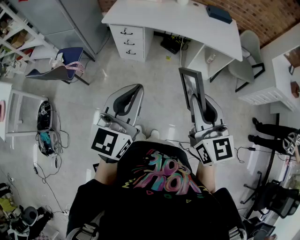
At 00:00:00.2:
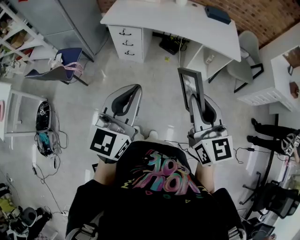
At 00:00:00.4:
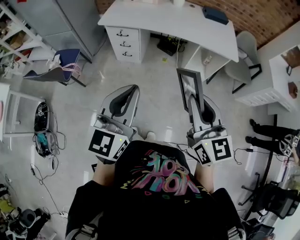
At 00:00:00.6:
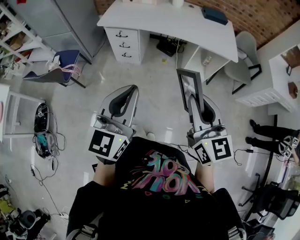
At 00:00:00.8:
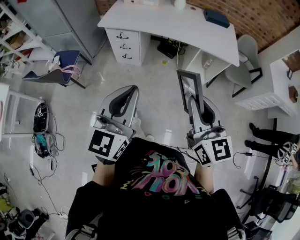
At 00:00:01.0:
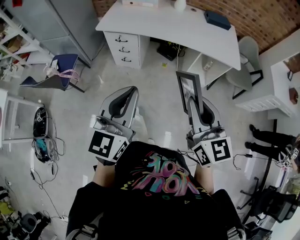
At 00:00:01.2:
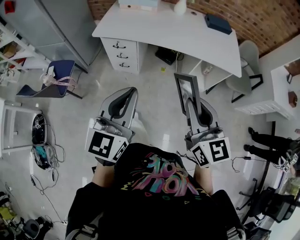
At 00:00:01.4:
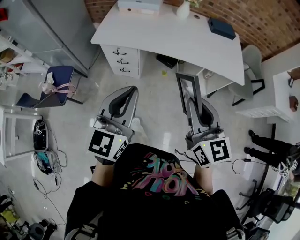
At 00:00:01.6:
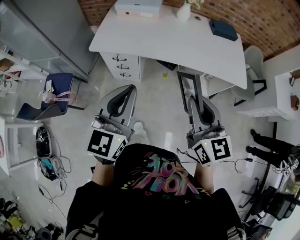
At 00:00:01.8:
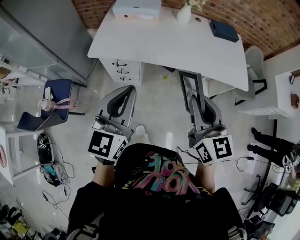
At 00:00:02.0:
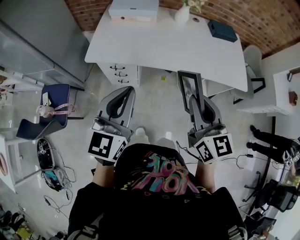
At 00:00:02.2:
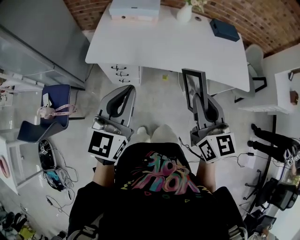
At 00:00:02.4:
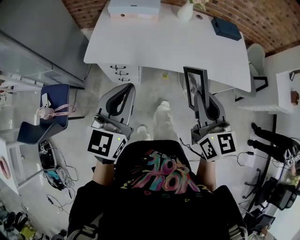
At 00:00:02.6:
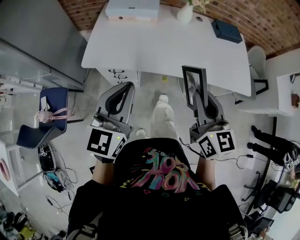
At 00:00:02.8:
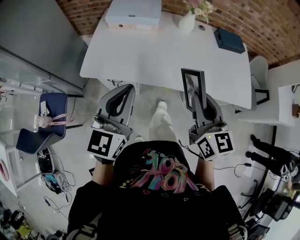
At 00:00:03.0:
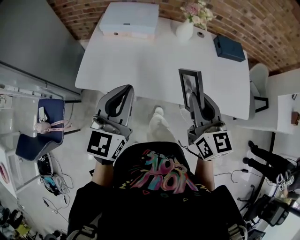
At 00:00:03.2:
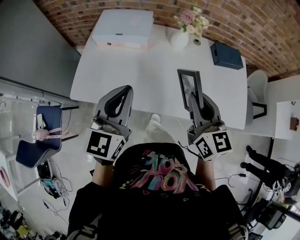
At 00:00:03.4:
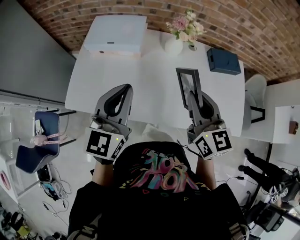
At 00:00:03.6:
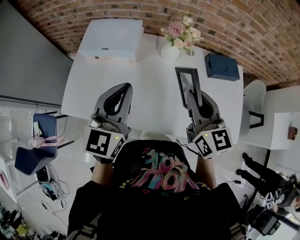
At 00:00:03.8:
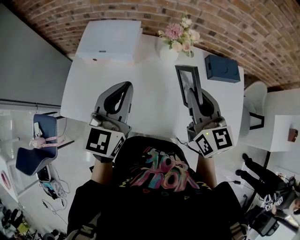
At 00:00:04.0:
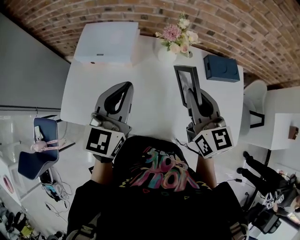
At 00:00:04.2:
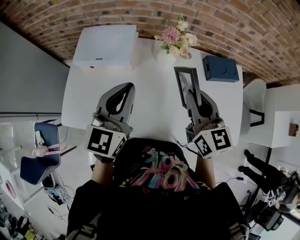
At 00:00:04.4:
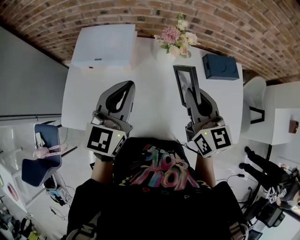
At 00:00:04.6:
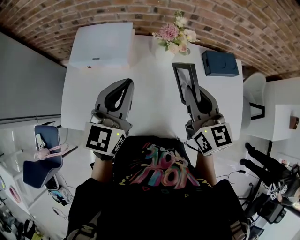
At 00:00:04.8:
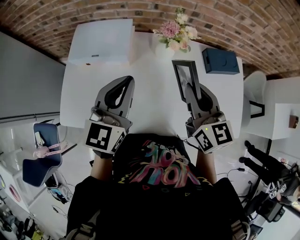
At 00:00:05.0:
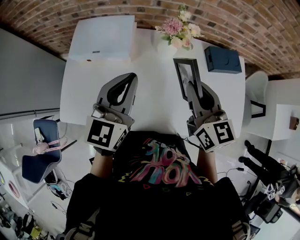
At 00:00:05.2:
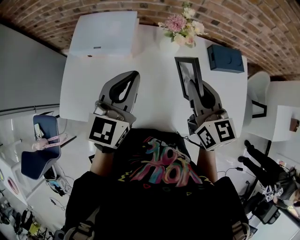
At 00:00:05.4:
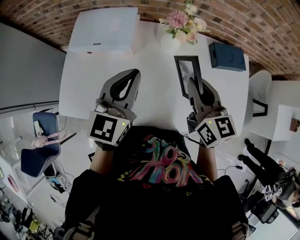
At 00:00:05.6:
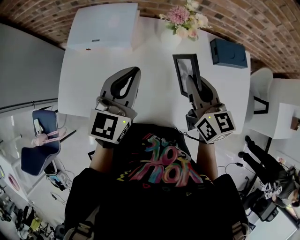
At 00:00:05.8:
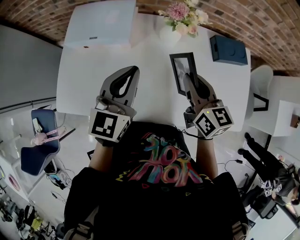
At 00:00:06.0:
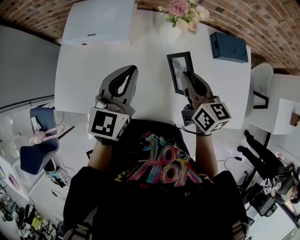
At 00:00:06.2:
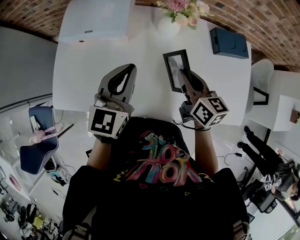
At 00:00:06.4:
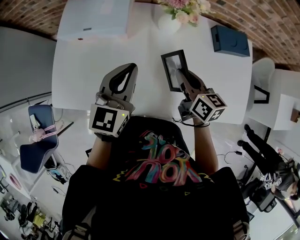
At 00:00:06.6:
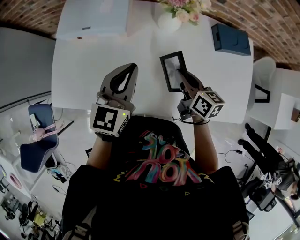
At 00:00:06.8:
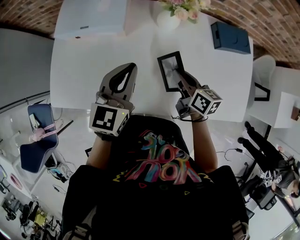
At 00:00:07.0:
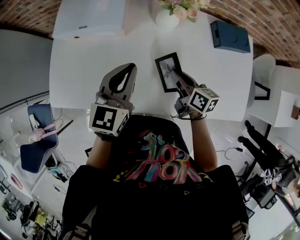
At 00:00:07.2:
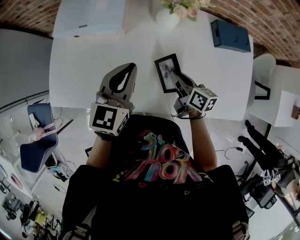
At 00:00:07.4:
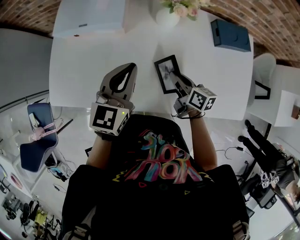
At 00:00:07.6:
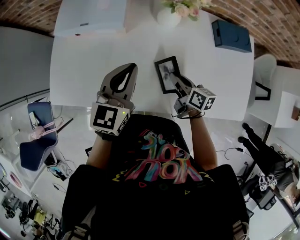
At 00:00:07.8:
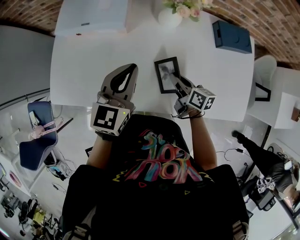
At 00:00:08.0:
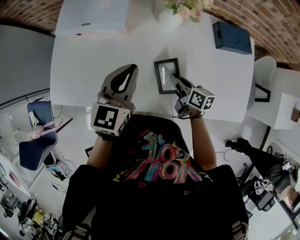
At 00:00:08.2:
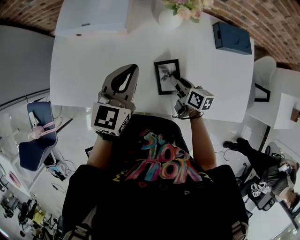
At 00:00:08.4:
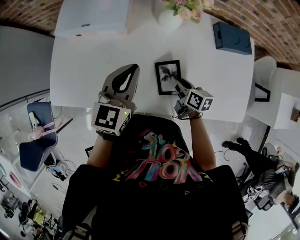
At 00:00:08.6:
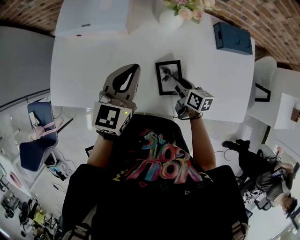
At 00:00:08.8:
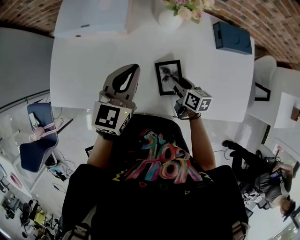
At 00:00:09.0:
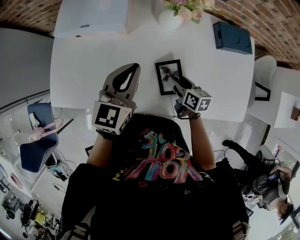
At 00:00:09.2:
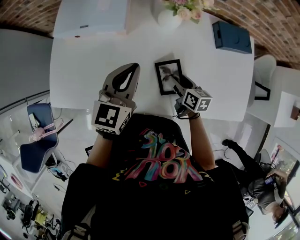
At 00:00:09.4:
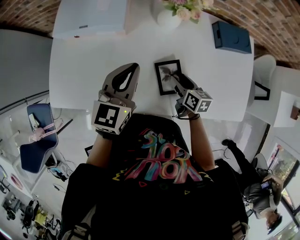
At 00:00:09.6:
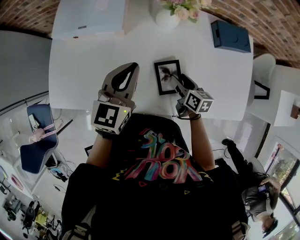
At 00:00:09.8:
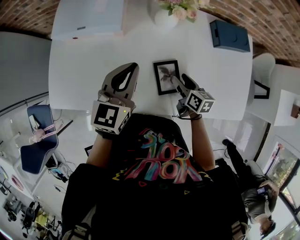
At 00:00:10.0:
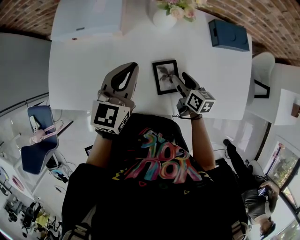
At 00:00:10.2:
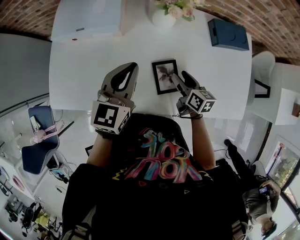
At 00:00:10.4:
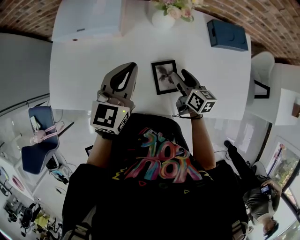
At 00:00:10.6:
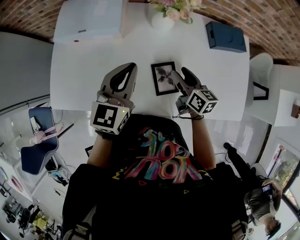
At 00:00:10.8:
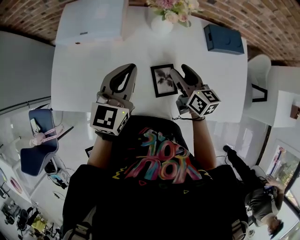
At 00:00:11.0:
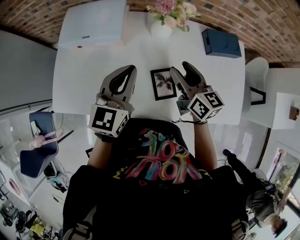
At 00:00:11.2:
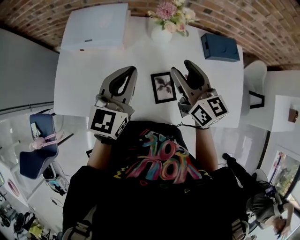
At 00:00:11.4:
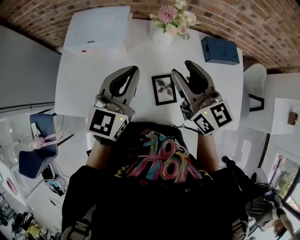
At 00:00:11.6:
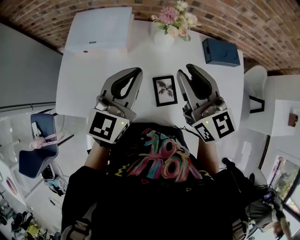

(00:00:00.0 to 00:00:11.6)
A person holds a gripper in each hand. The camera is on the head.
00:00:00.0 - 00:00:01.4: The grippers both shift forward by roughly 25 cm.
00:00:01.4 - 00:00:02.8: Both grippers travel together forward, about 30 cm.
00:00:02.8 - 00:00:04.4: The left gripper heads forward and to the right, covering roughly 40 cm. Meanwhile the right gripper moves forward, about 35 cm.
00:00:04.4 - 00:00:05.8: Both grippers move downward, some 10 cm.
00:00:05.8 - 00:00:07.2: The right gripper heads downward, covering some 15 cm, and rotates roughly 30 degrees. Meanwhile the left gripper shifts some 5 cm downward.
00:00:07.2 - 00:00:08.8: The right gripper shifts some 5 cm downward, and opens up.
00:00:08.8 - 00:00:10.2: The grippers make only small movements.
00:00:10.2 - 00:00:11.6: The left gripper is displaced upward by approximately 10 cm. Meanwhile the right gripper moves upward, approximately 30 cm, rotates approximately 50 degrees, and closes its fingers.

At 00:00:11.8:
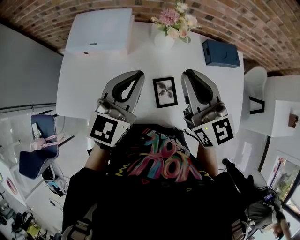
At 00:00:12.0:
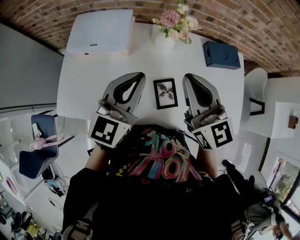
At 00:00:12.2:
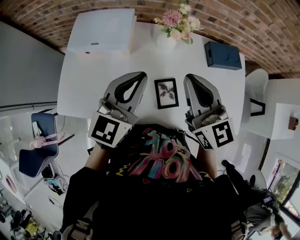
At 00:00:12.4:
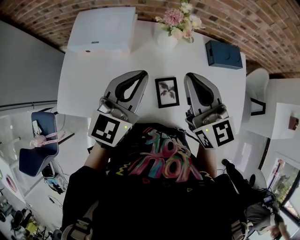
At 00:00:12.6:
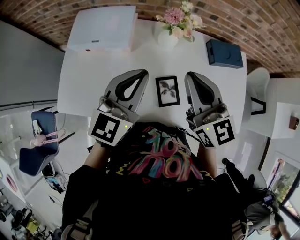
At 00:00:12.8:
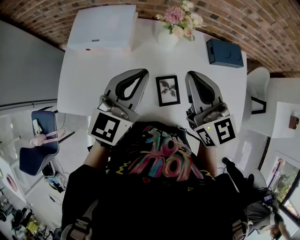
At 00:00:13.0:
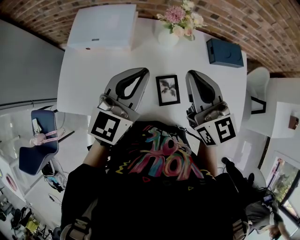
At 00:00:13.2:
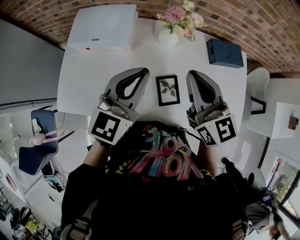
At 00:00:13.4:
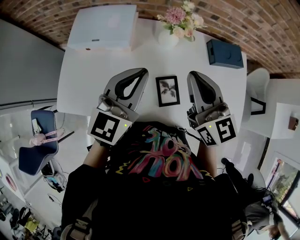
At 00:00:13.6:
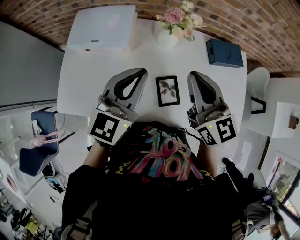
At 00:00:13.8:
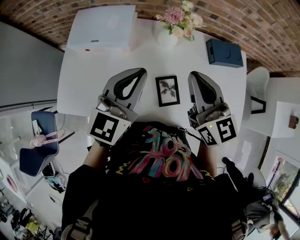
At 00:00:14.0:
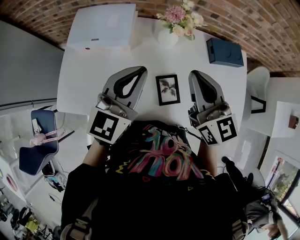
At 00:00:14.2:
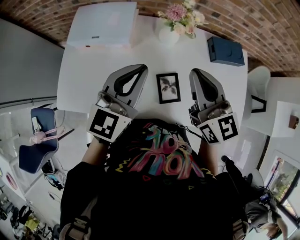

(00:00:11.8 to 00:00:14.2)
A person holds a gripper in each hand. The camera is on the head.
00:00:11.8 - 00:00:13.0: The grippers make only small movements.
00:00:13.0 - 00:00:14.2: Both grippers stay about where they are.

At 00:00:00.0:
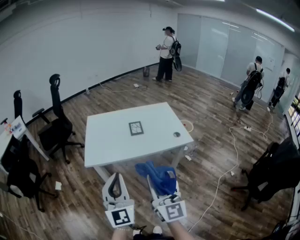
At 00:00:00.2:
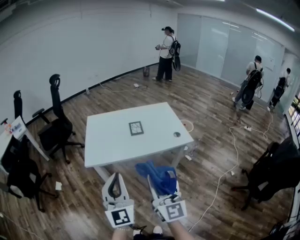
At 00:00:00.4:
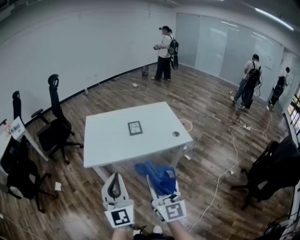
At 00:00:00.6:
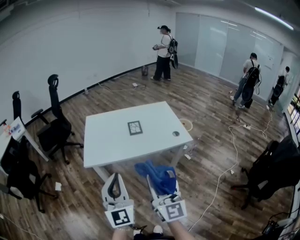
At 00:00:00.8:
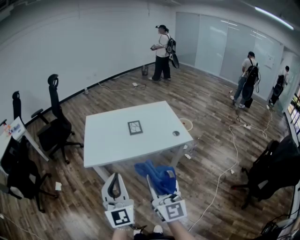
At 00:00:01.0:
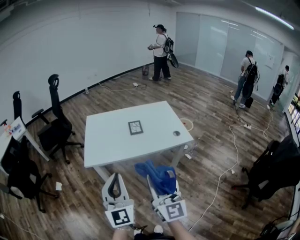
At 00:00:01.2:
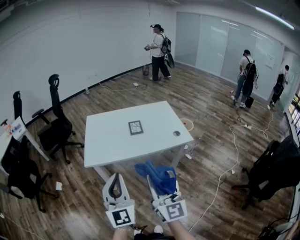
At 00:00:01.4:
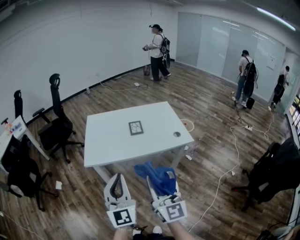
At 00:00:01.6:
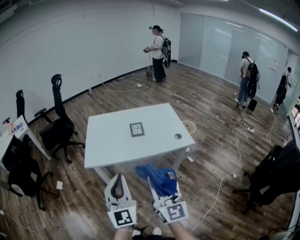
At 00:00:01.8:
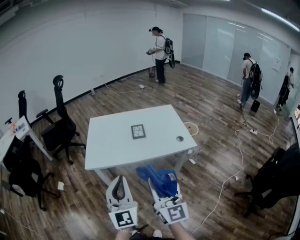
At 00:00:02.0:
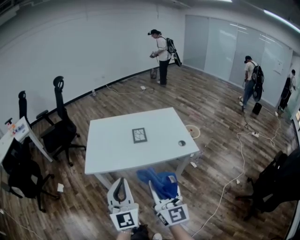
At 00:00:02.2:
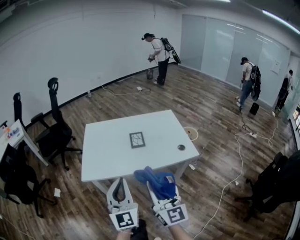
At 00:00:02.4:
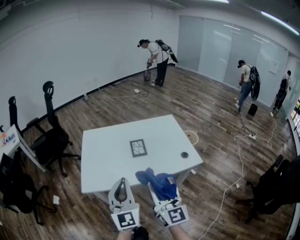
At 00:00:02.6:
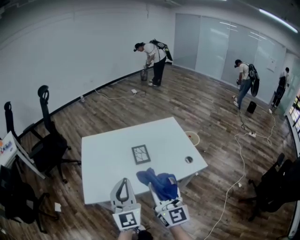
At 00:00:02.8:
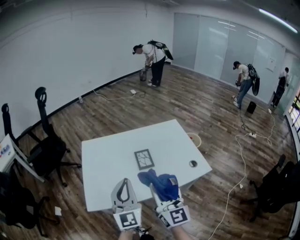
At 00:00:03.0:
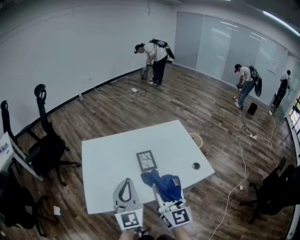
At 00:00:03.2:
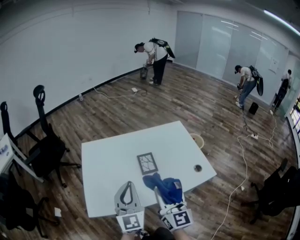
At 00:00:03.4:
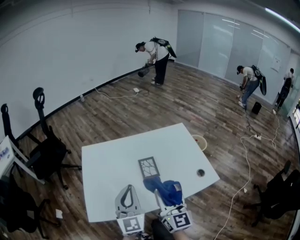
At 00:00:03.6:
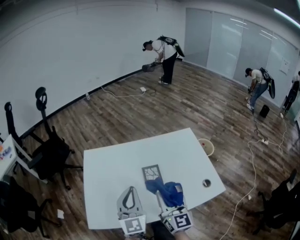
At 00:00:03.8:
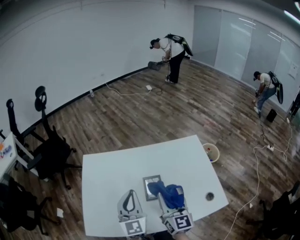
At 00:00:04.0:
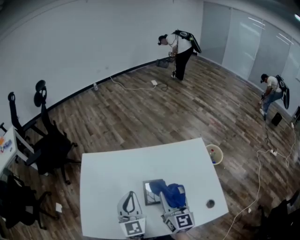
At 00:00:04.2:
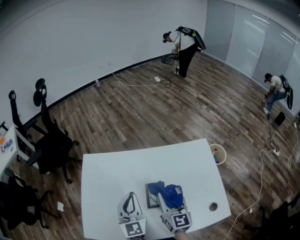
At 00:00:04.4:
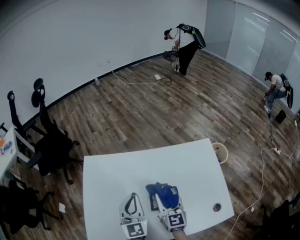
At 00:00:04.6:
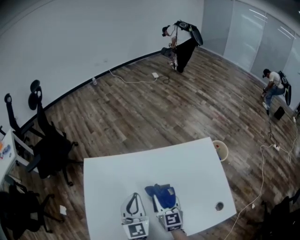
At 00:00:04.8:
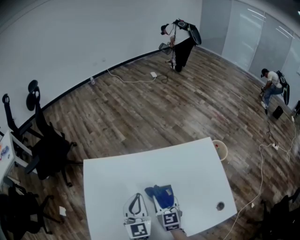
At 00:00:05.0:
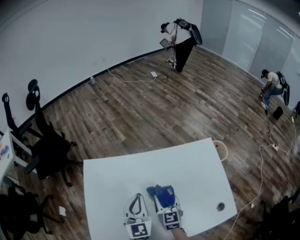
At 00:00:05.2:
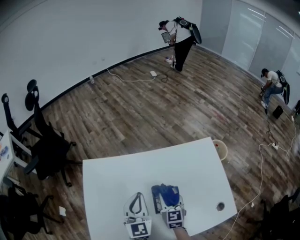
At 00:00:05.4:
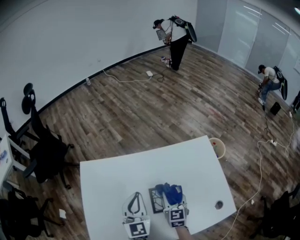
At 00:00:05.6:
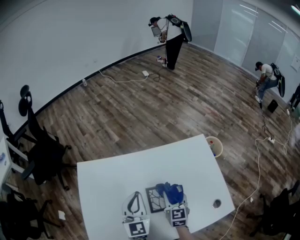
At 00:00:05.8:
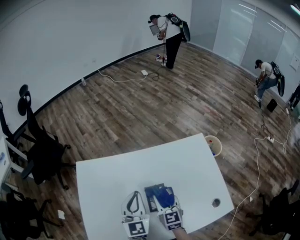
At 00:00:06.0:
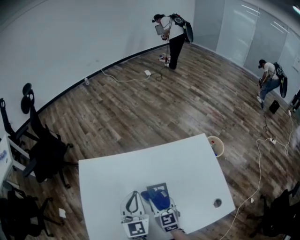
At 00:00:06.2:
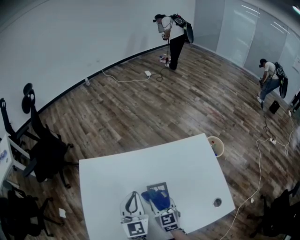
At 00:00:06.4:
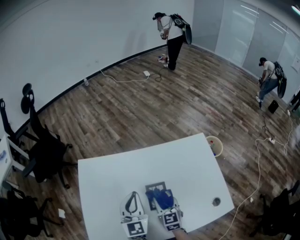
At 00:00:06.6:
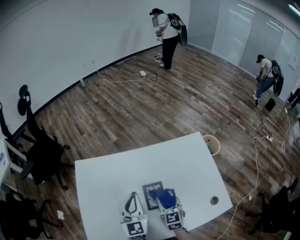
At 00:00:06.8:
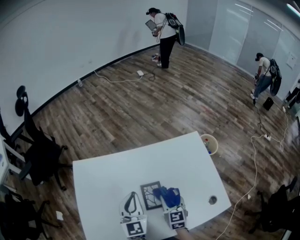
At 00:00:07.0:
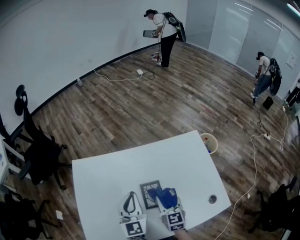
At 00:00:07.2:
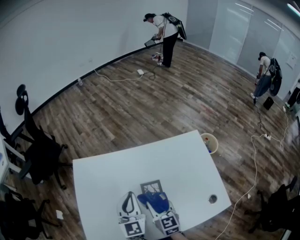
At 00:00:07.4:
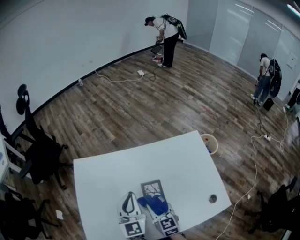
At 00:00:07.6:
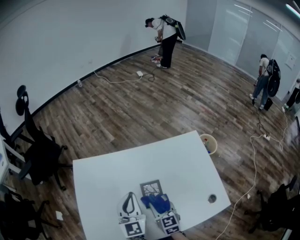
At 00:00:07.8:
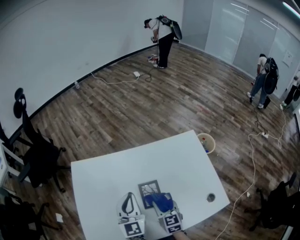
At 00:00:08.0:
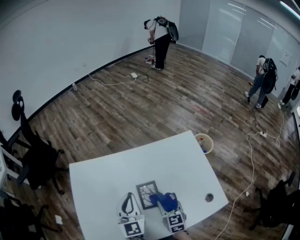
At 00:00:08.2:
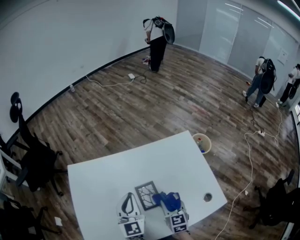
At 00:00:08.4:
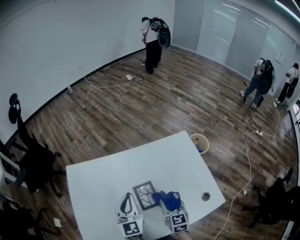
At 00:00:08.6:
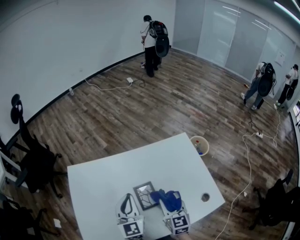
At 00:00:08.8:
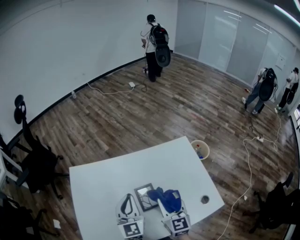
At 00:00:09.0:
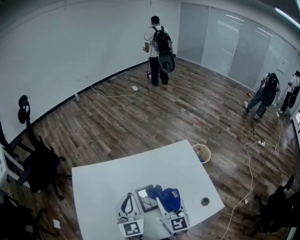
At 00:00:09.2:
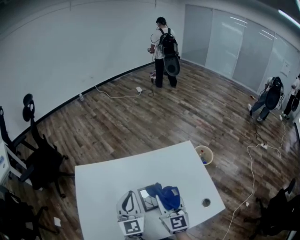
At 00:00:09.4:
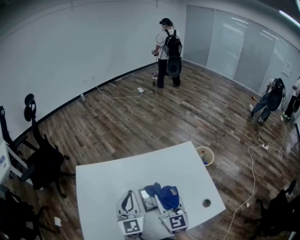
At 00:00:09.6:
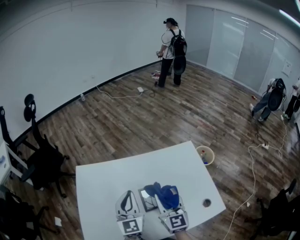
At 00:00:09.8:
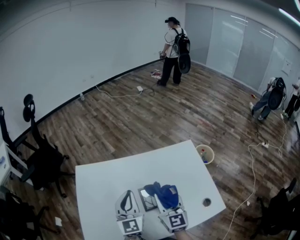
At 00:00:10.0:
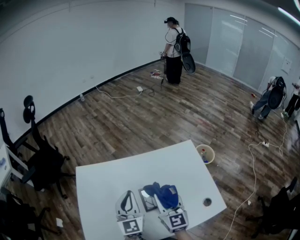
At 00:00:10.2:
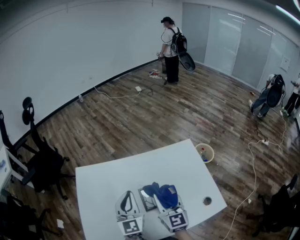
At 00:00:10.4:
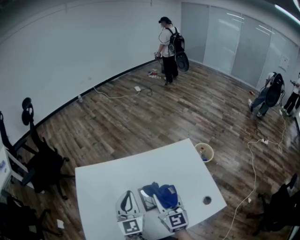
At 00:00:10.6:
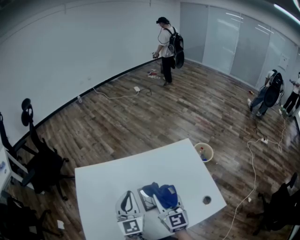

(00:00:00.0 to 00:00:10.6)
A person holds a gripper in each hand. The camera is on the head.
00:00:00.0 - 00:00:01.6: The grippers make only small movements.
00:00:01.6 - 00:00:03.0: The two grippers go approximately 35 cm forward.
00:00:03.0 - 00:00:04.6: The left gripper is displaced forward by about 30 cm, and turns by some 20 degrees; the right gripper moves forward and downward, about 40 cm, and turns by about 30 degrees.
00:00:04.6 - 00:00:06.0: The right gripper goes to the right and returns, roughly 10 cm each way.
00:00:06.0 - 00:00:07.6: The right gripper shifts about 5 cm backward, and reaches roughly 10 cm to the right, then returns.
00:00:07.6 - 00:00:09.0: The right gripper heads upward and to the right, covering approximately 15 cm, and rotates roughly 20 degrees. The left gripper moves about 5 cm.
00:00:09.0 - 00:00:10.6: There are only small adjustments of the grippers.
